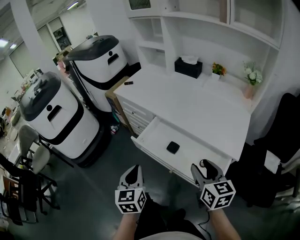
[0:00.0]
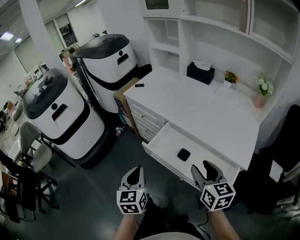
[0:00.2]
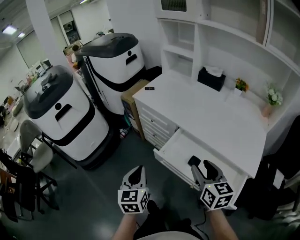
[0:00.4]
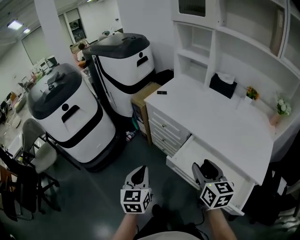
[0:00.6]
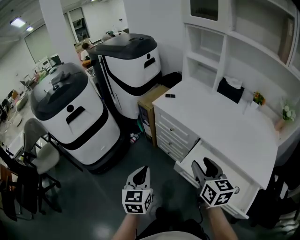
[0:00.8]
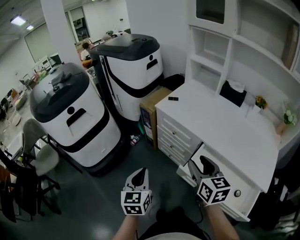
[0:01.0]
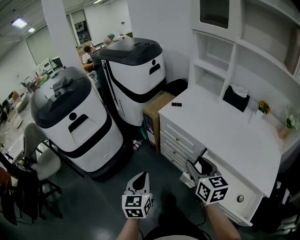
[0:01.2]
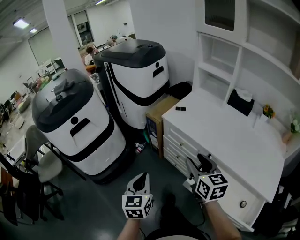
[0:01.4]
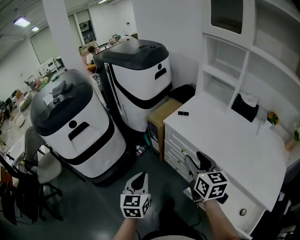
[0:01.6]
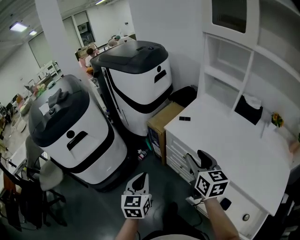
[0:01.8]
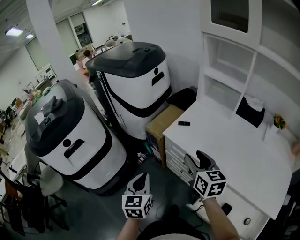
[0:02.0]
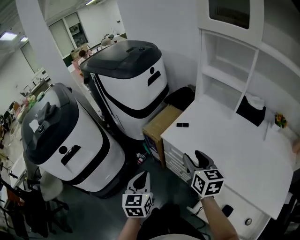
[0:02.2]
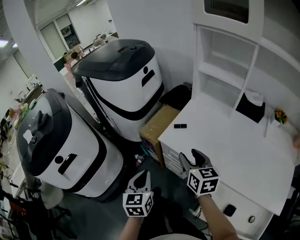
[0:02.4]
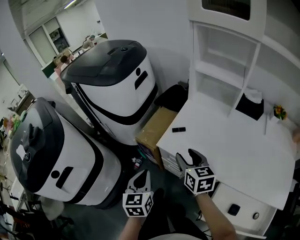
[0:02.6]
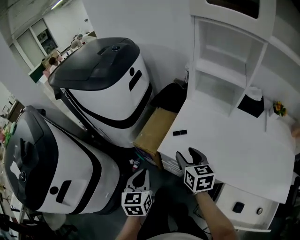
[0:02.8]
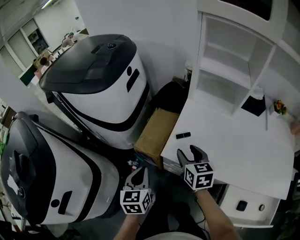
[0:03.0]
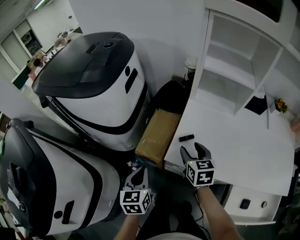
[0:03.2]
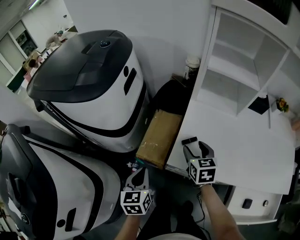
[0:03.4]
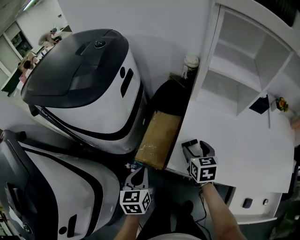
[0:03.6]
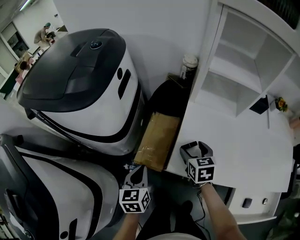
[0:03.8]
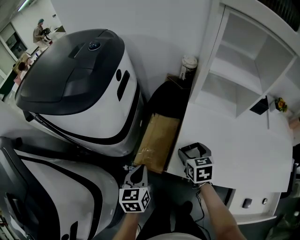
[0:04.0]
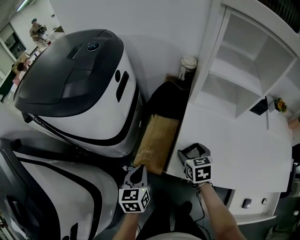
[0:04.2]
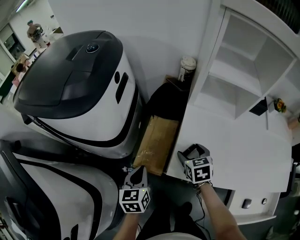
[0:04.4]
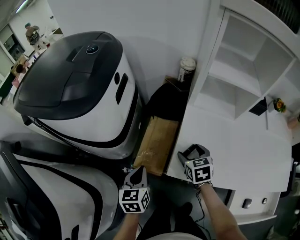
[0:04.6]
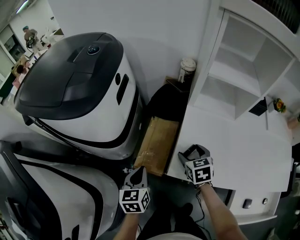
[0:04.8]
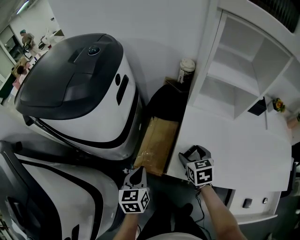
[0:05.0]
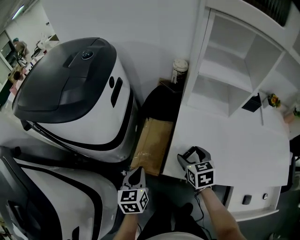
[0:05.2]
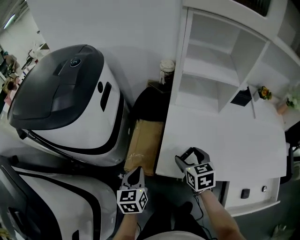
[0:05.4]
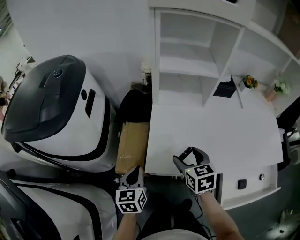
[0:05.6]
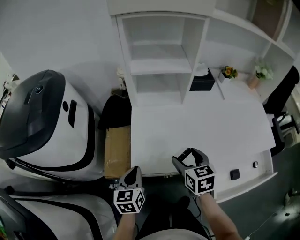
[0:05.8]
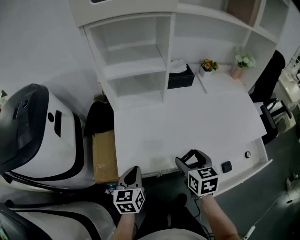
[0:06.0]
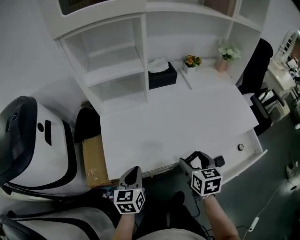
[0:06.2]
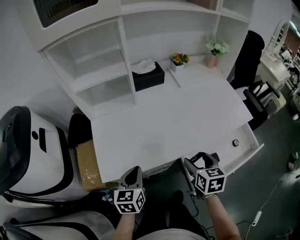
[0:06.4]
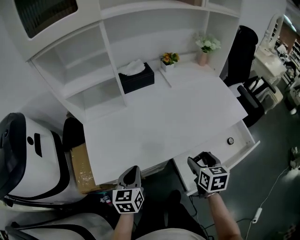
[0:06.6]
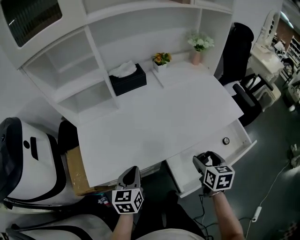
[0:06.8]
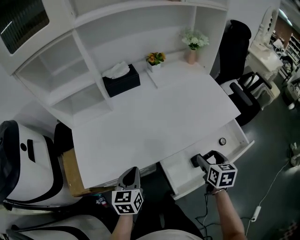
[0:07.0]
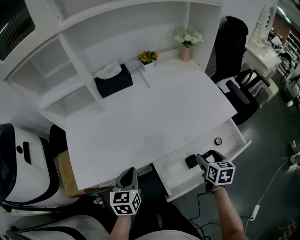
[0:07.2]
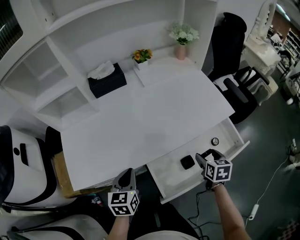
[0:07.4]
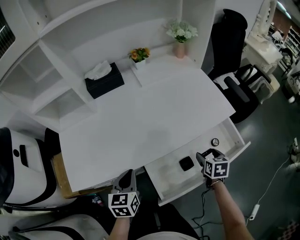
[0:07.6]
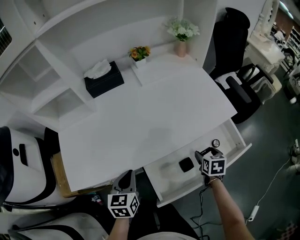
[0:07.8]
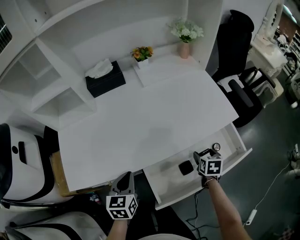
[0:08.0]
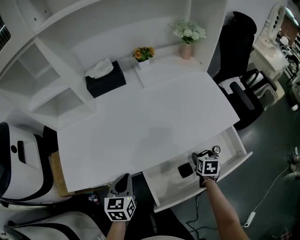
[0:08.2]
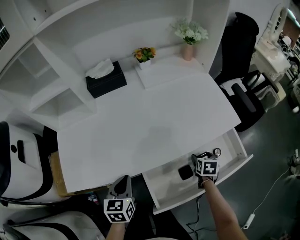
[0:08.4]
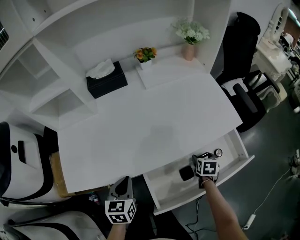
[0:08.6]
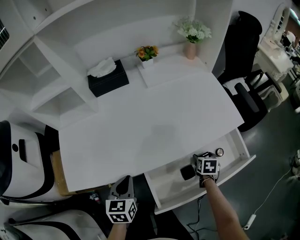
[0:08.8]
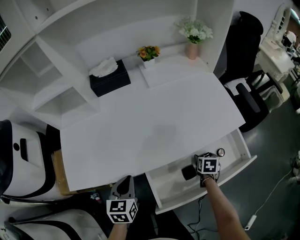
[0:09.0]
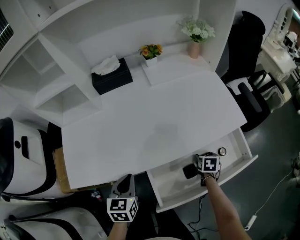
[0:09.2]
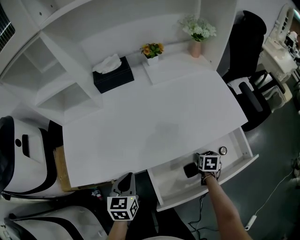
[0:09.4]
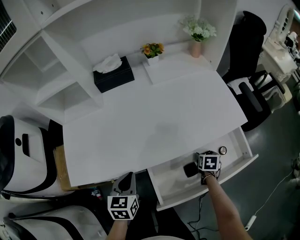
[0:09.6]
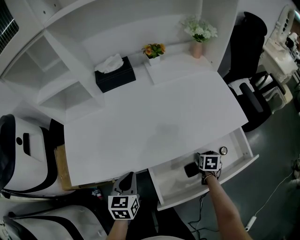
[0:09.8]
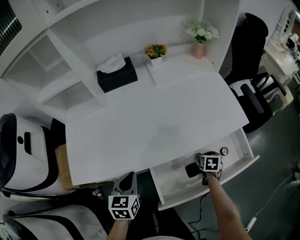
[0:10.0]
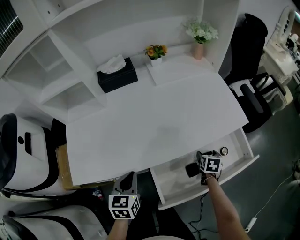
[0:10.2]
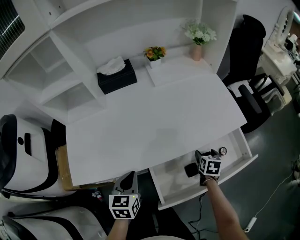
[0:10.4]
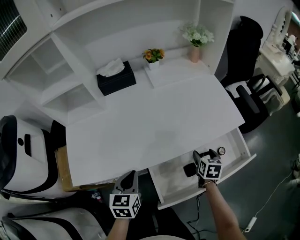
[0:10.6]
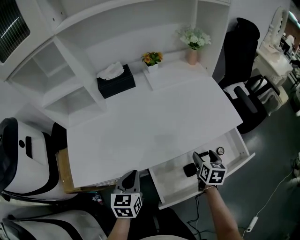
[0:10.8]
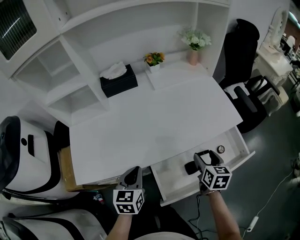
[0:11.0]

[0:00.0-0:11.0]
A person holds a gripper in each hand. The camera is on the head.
0:00.0 to 0:01.6: Both grippers move forward and to the left, some 40 cm.
0:01.6 to 0:03.2: Both grippers move forward, roughly 35 cm. The right gripper rotates approximately 30 degrees; the left gripper swivels about 20 degrees.
0:03.2 to 0:04.8: The right gripper goes some 10 cm downward and forward; the left gripper heads forward, covering about 10 cm.
0:04.8 to 0:06.2: The right gripper moves roughly 35 cm, and rotates approximately 40 degrees, while the left gripper moves roughly 25 cm, and turns by some 30 degrees.
0:06.2 to 0:07.8: The left gripper heads to the right, covering approximately 20 cm. Meanwhile the right gripper moves to the right, approximately 35 cm, and turns by approximately 20 degrees.
0:07.8 to 0:09.4: The right gripper is displaced downward by about 10 cm.
0:09.4 to 0:11.0: The right gripper shifts about 15 cm upward, and swivels some 30 degrees.

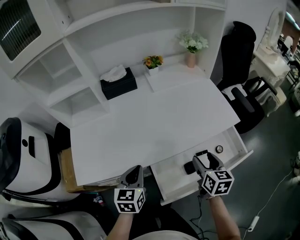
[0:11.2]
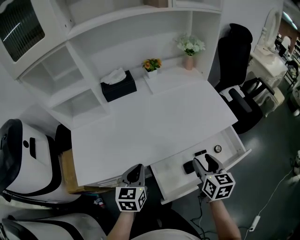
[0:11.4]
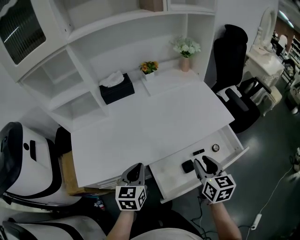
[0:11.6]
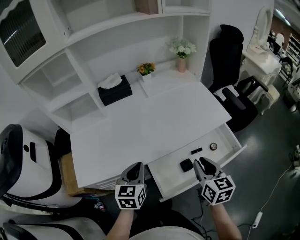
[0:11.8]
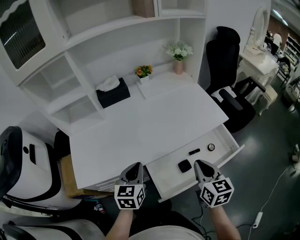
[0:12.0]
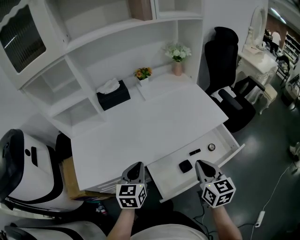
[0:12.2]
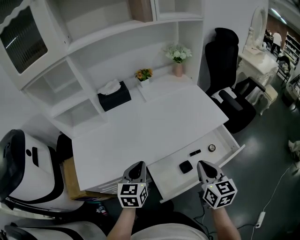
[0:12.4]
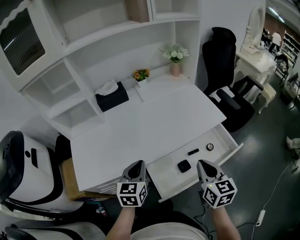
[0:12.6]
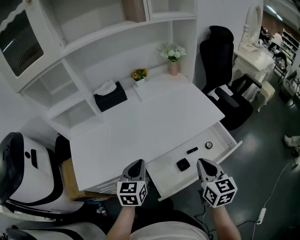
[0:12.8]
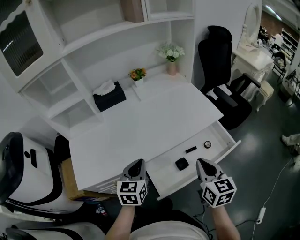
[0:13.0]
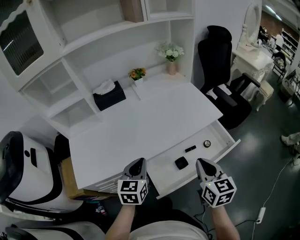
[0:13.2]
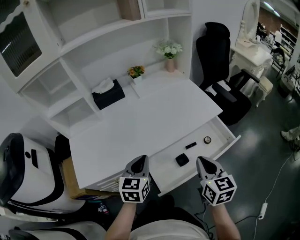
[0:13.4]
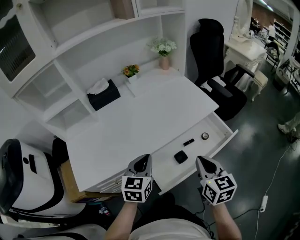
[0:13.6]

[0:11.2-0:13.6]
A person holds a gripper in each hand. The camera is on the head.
0:11.2 to 0:12.4: The left gripper moves about 5 cm. The right gripper goes some 10 cm upward and backward, and closes up.
0:12.4 to 0:13.6: The left gripper ends up roughly 5 cm from where it was.

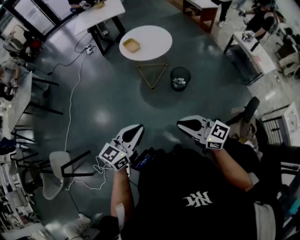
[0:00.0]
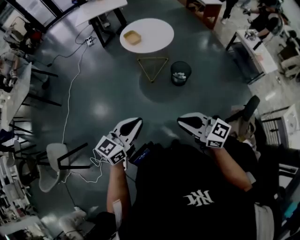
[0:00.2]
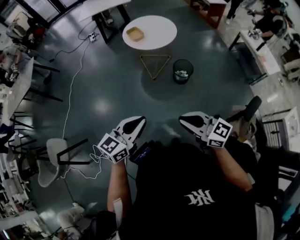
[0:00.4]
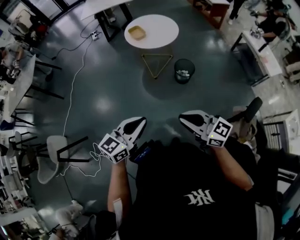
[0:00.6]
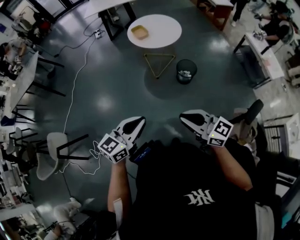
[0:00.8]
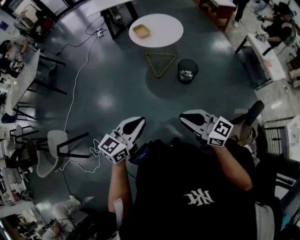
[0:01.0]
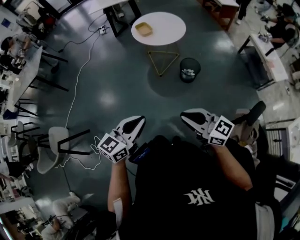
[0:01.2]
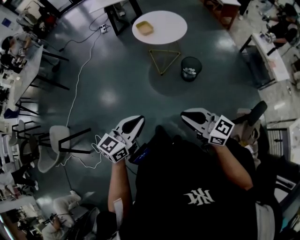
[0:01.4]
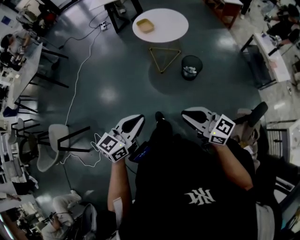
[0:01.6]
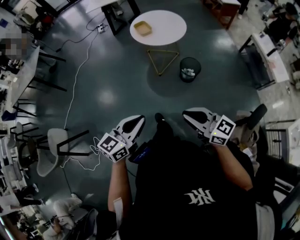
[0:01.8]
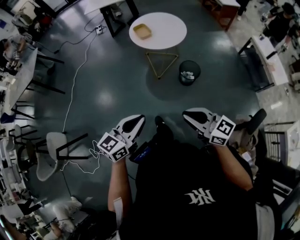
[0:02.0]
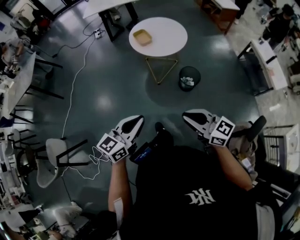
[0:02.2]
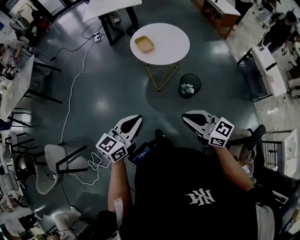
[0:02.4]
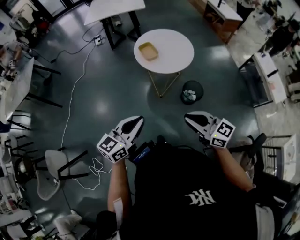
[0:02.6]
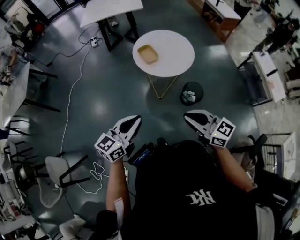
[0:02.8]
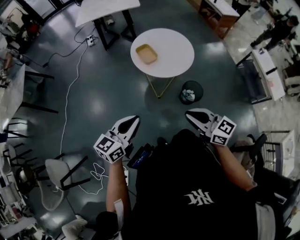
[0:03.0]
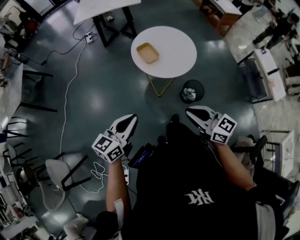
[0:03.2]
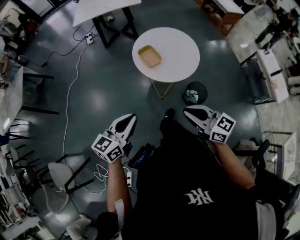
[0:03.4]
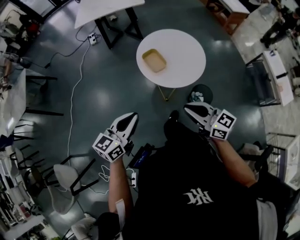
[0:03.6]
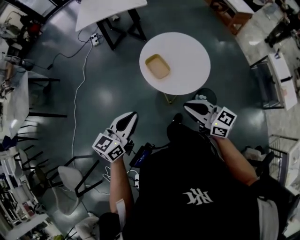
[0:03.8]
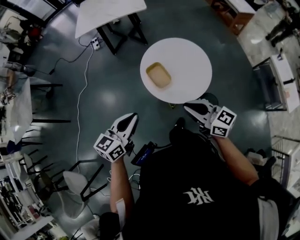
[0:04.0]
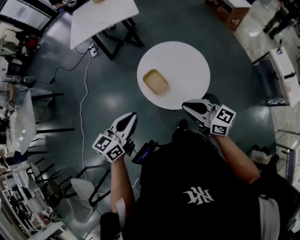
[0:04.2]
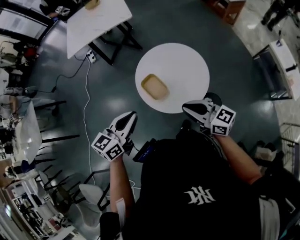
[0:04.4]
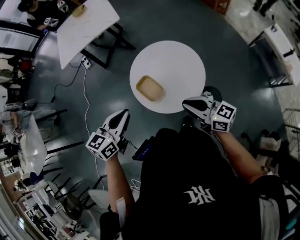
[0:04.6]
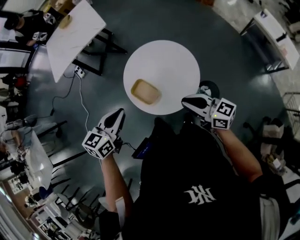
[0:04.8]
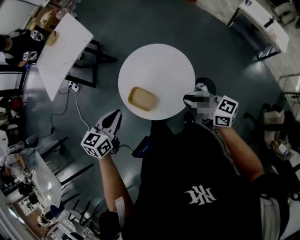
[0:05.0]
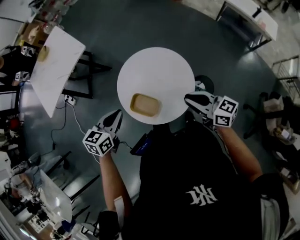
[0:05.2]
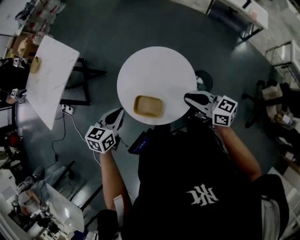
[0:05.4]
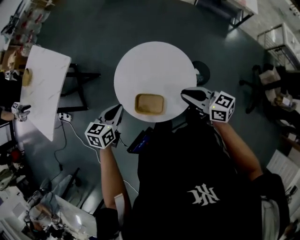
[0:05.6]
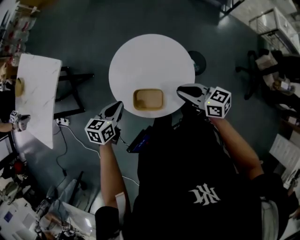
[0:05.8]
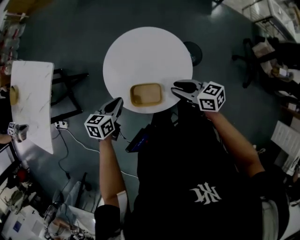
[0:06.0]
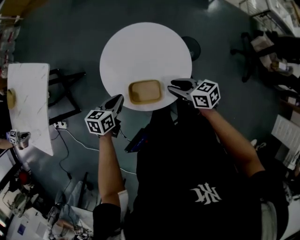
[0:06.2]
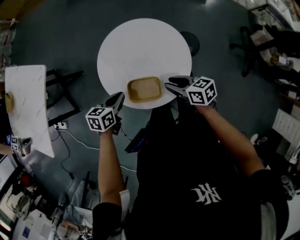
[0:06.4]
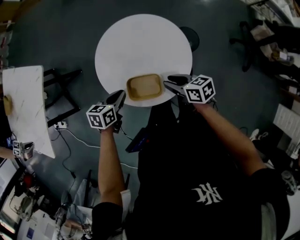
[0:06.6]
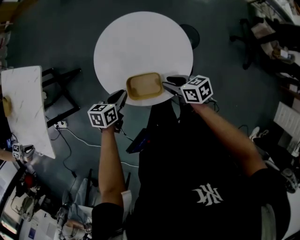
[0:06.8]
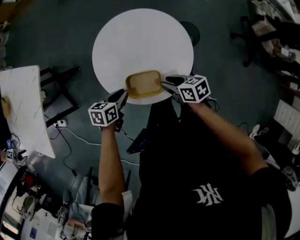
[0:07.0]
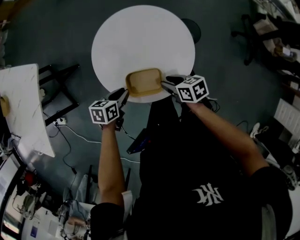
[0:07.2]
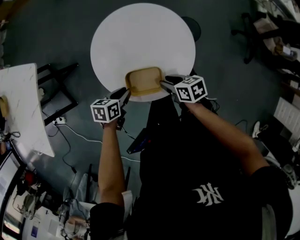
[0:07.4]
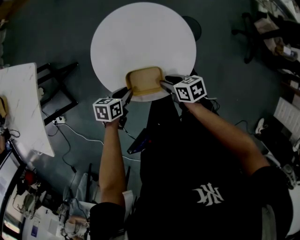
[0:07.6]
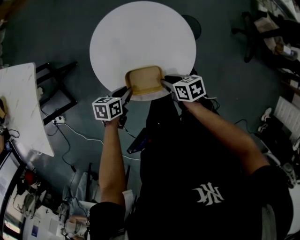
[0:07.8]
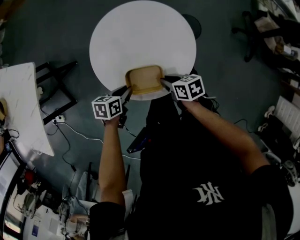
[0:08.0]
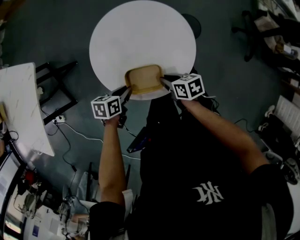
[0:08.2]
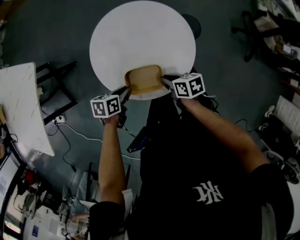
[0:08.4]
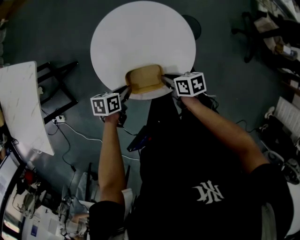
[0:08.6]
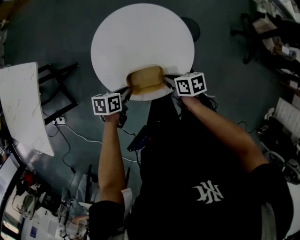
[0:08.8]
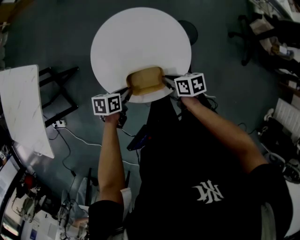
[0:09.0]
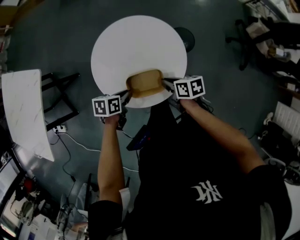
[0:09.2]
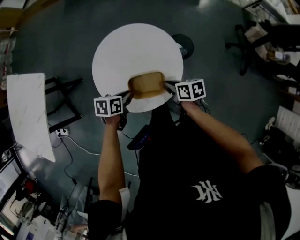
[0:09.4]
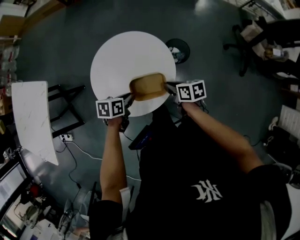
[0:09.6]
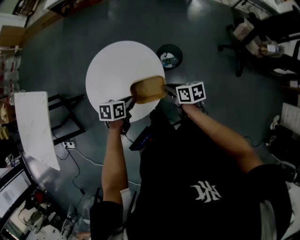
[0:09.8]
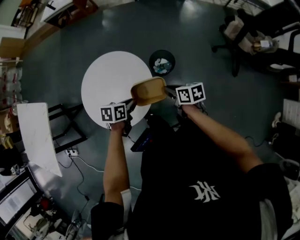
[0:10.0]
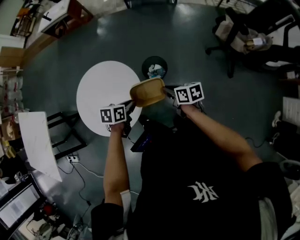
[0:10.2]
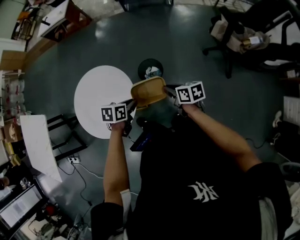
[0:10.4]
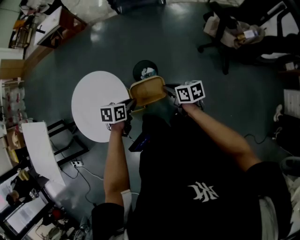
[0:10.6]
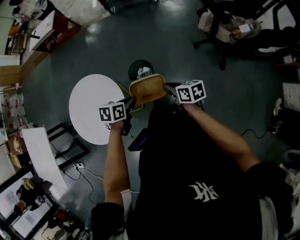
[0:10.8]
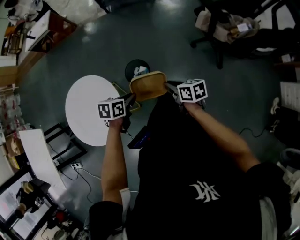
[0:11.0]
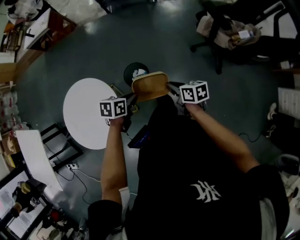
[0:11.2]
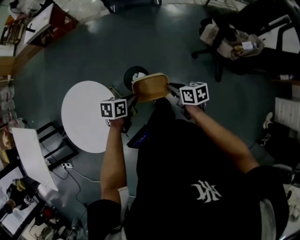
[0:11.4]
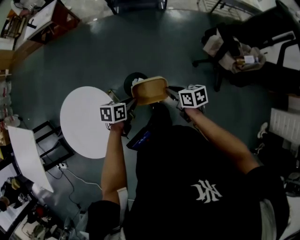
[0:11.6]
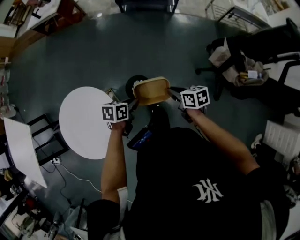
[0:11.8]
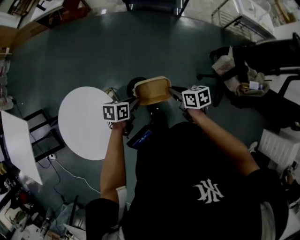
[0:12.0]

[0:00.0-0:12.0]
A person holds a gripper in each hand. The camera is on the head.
0:00.0 to 0:01.6: The grippers make only small movements.
0:01.6 to 0:03.0: Both grippers travel together forward, approximately 30 cm.
0:03.0 to 0:04.4: The two grippers go approximately 30 cm forward.
0:04.4 to 0:06.0: The left gripper shifts by some 30 cm, and changes its angle by about 50 degrees, while the right gripper moves downward, some 15 cm, and swivels roughly 50 degrees.
0:06.0 to 0:07.6: The two grippers go some 15 cm downward. The right gripper turns by about 30 degrees. The left gripper opens.
0:07.6 to 0:09.0: The right gripper closes its fingers.
0:09.0 to 0:10.4: The left gripper shifts by approximately 35 cm. The right gripper shifts by roughly 35 cm.
0:10.4 to 0:12.0: Both grippers travel together forward, about 20 cm.
